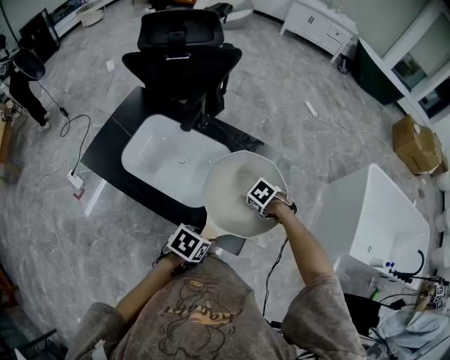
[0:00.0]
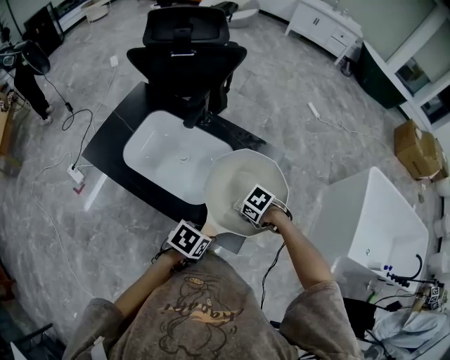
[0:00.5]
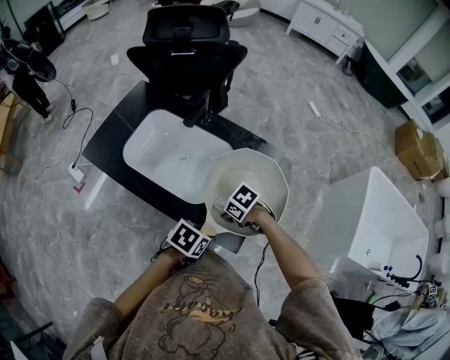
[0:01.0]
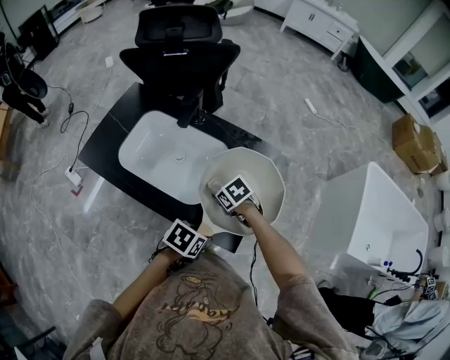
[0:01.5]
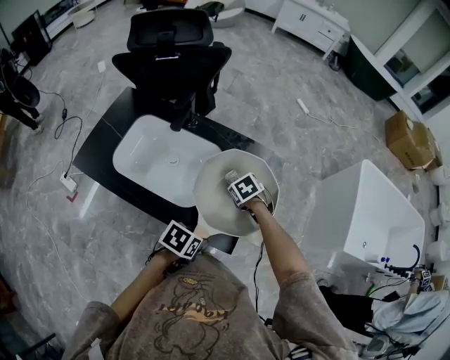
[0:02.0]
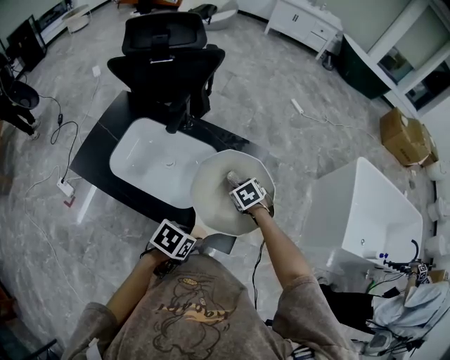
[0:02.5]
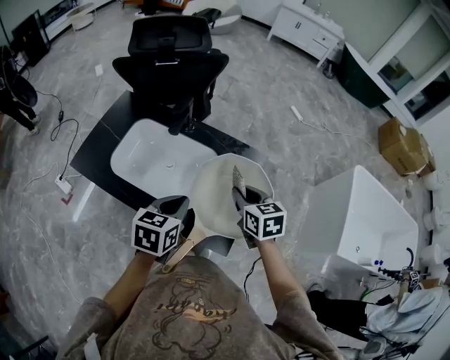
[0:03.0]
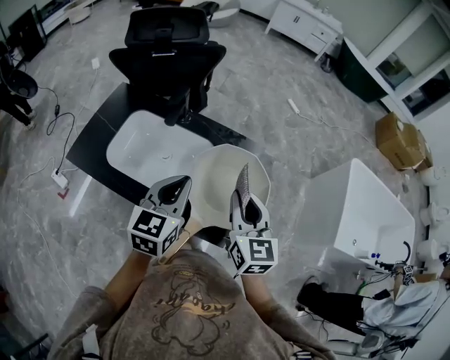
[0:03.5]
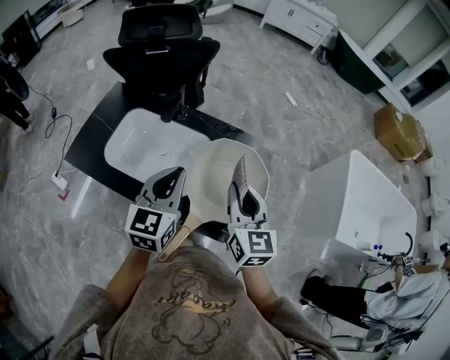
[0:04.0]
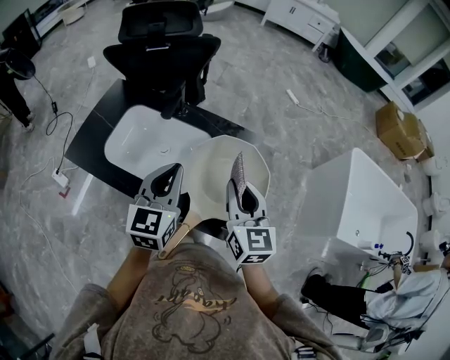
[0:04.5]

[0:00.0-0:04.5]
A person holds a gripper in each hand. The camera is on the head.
0:00.0 to 0:02.0: The right gripper rotates roughly 20 degrees.
0:02.0 to 0:04.5: The left gripper is displaced upward and forward by about 25 cm, angles its fingers upward, by roughly 50 degrees, and closes up, while the right gripper shifts about 25 cm upward, and tips its fingers upward by approximately 60 degrees.

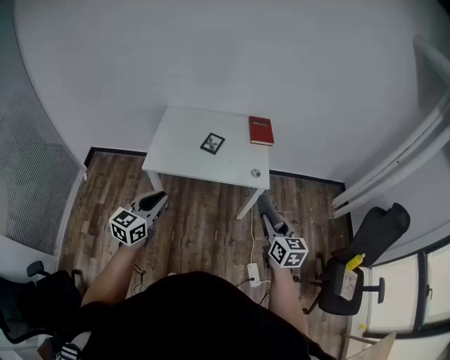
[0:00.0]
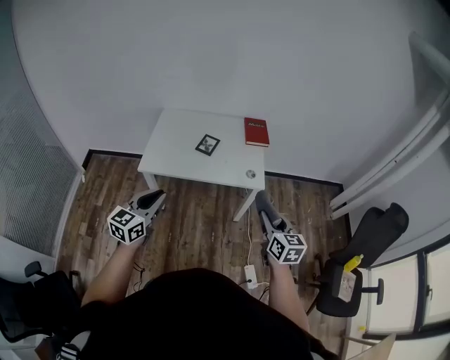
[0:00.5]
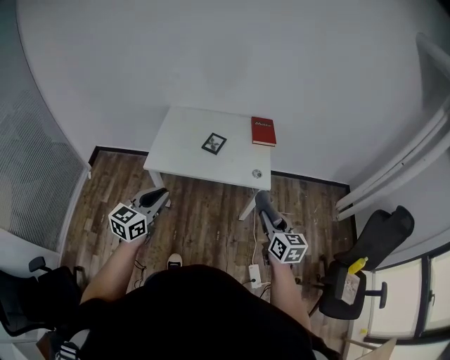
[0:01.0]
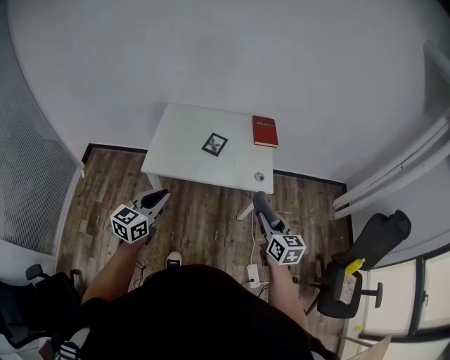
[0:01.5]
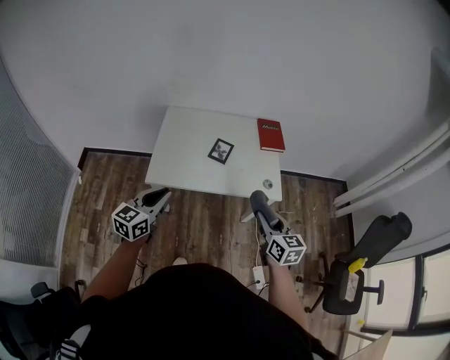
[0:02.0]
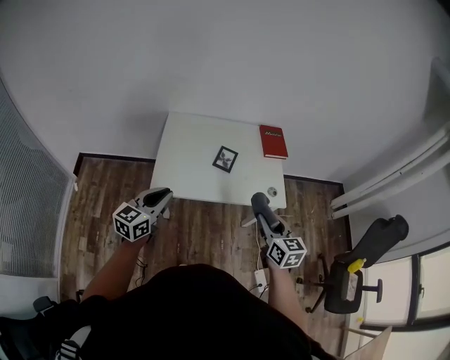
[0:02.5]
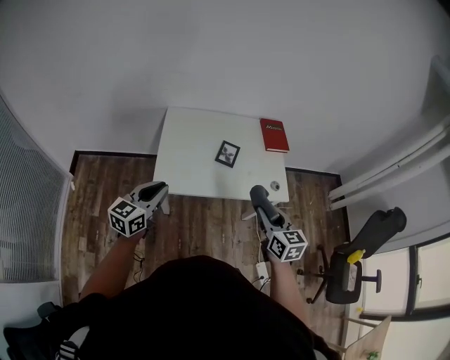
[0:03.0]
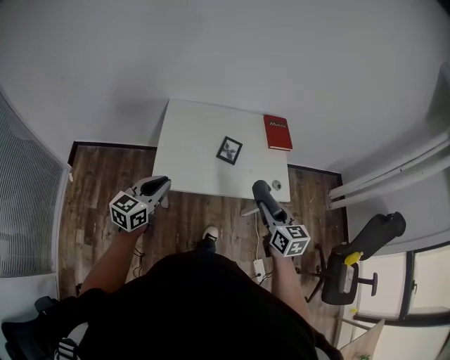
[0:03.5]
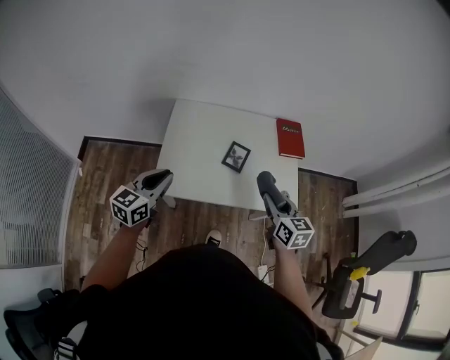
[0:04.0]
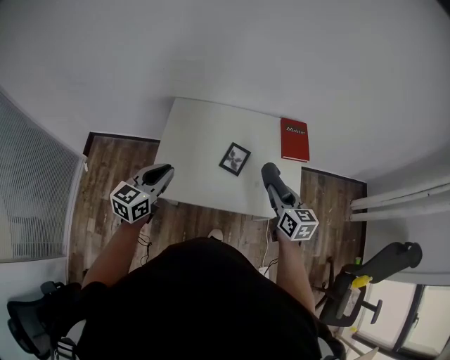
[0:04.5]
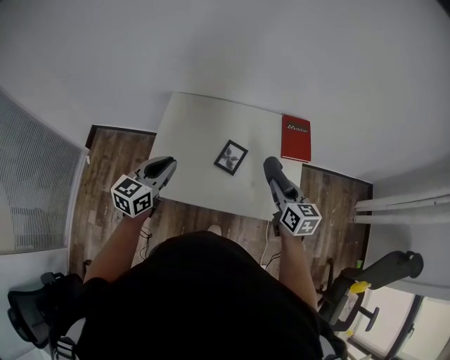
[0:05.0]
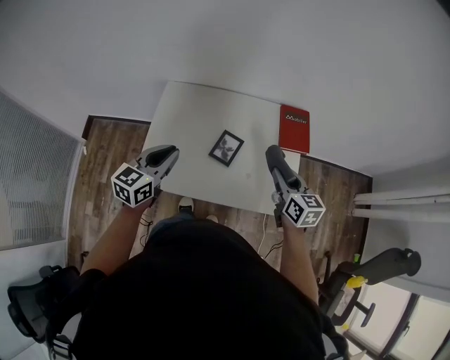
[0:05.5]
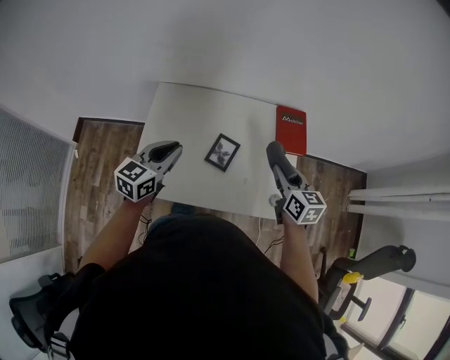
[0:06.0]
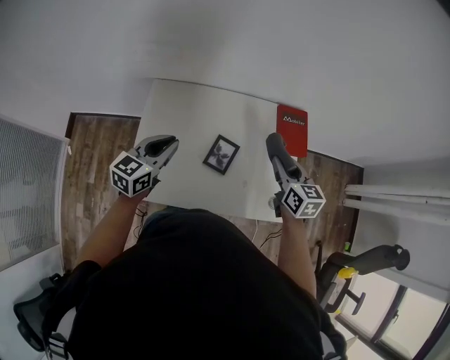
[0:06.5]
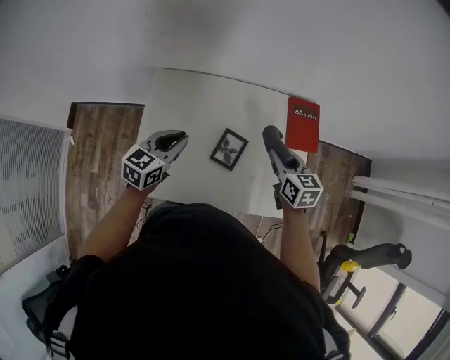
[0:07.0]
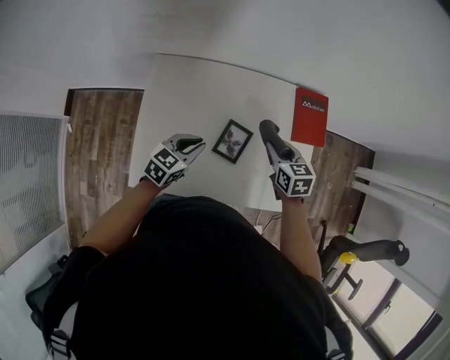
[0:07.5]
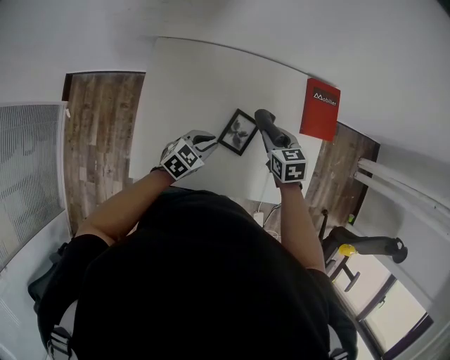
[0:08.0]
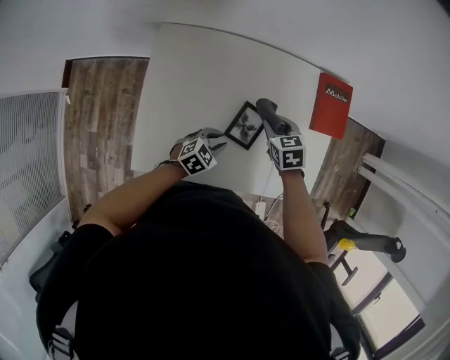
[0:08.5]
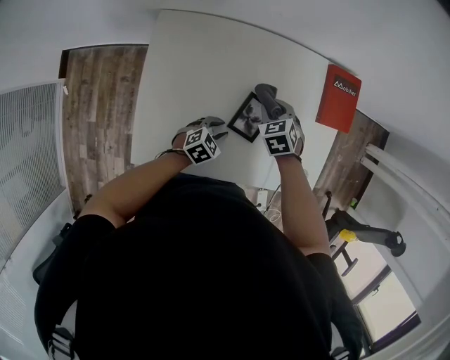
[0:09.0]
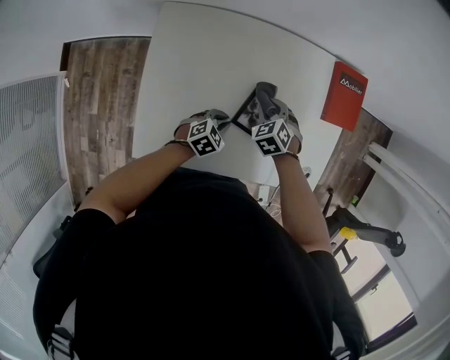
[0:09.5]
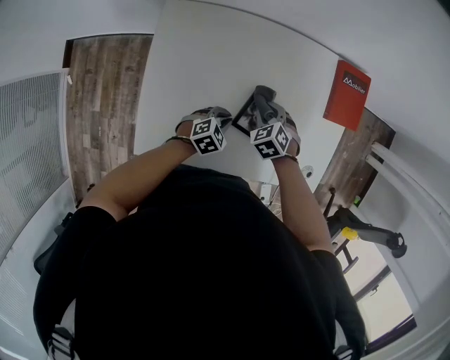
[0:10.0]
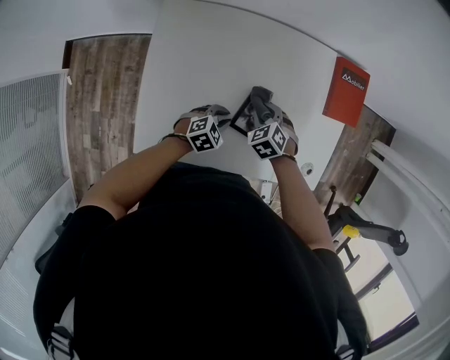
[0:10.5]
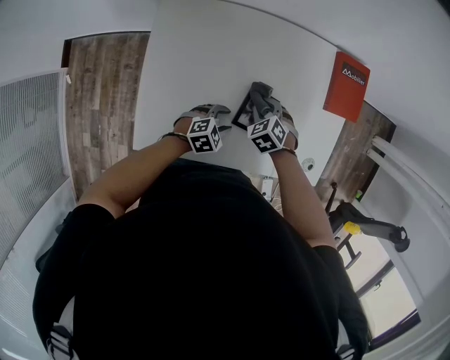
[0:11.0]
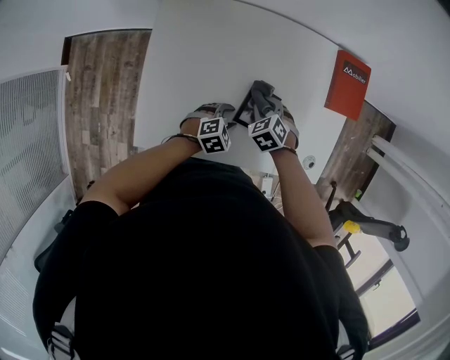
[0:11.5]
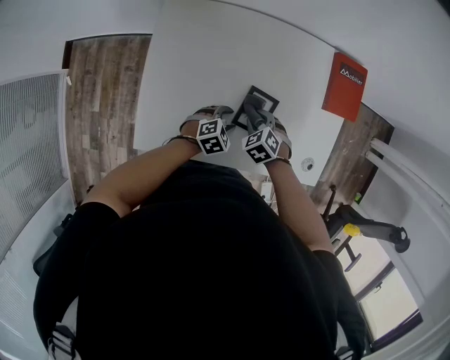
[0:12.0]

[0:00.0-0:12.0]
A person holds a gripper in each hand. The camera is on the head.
0:00.0 to 0:02.0: The left gripper travels forward and to the left by about 15 cm; the right gripper heads to the left and forward, covering approximately 15 cm.
0:02.0 to 0:04.0: Both grippers travel together forward and to the left, approximately 20 cm.
0:04.0 to 0:06.0: Both grippers move forward and to the right, about 20 cm.
0:06.0 to 0:08.0: The left gripper shifts roughly 25 cm downward, and turns by some 30 degrees; the right gripper is displaced downward, to the left and forward by about 25 cm, and changes its angle by roughly 30 degrees.
0:08.0 to 0:10.0: The right gripper goes about 10 cm downward and to the left, and rotates approximately 30 degrees. Meanwhile the left gripper moves downward, some 10 cm.
0:10.0 to 0:12.0: The left gripper opens, while the right gripper is displaced backward by approximately 5 cm.

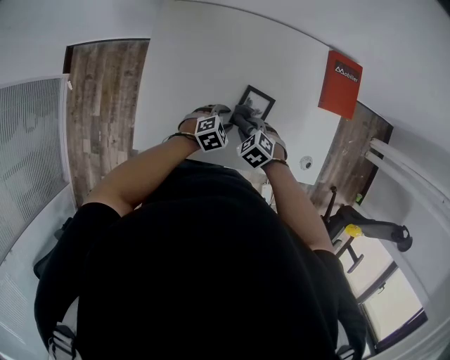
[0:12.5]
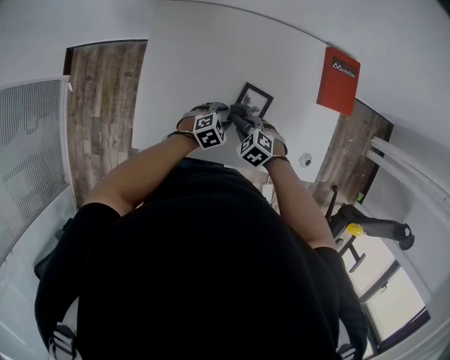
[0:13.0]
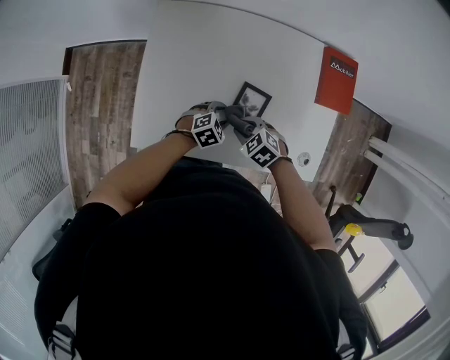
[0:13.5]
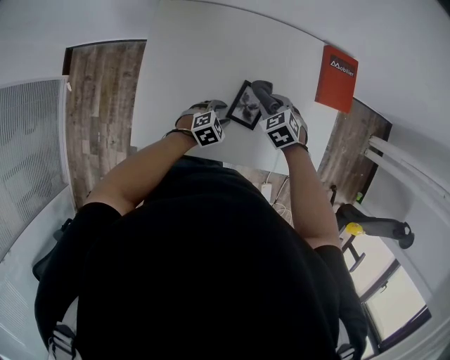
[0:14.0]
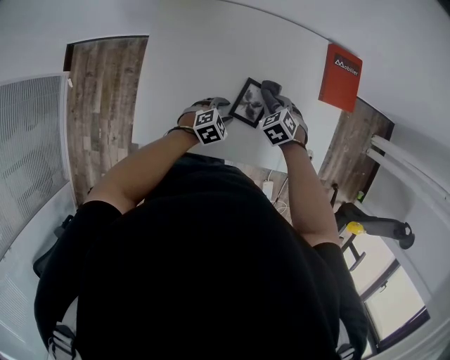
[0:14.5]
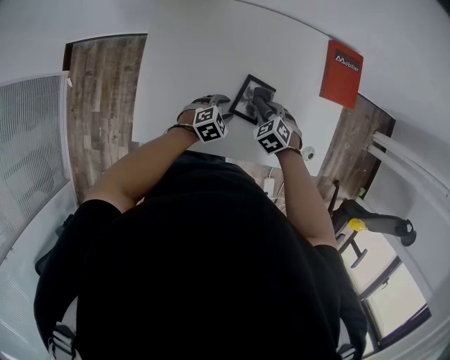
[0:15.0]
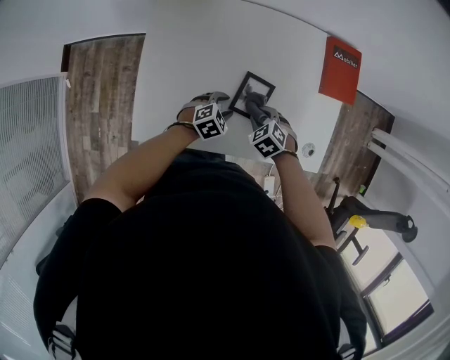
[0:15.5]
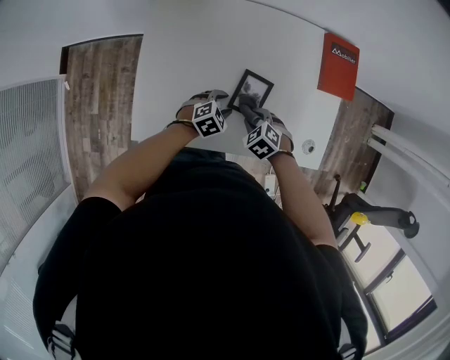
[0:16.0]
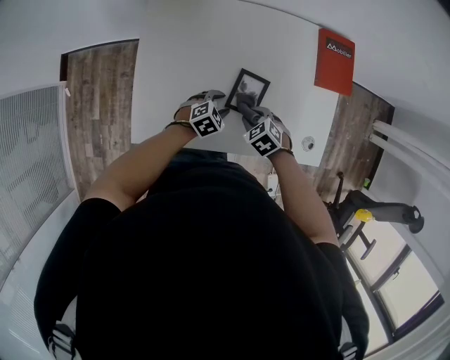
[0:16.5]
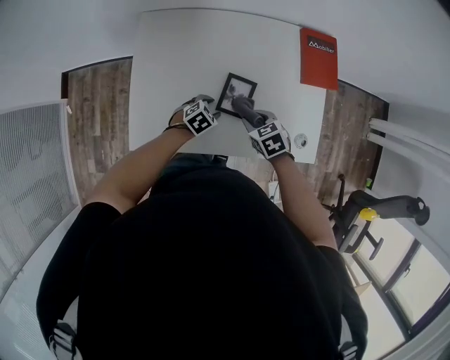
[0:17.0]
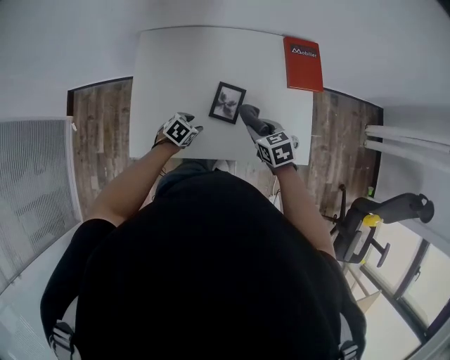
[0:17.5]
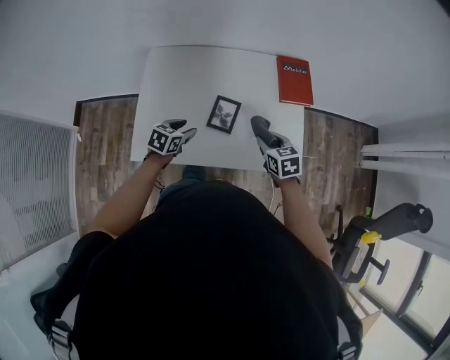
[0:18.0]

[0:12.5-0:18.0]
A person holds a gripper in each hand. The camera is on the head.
0:12.5 to 0:14.5: The right gripper moves roughly 10 cm.
0:14.5 to 0:16.0: The right gripper shifts some 10 cm backward.
0:16.0 to 0:18.0: The right gripper heads upward and to the right, covering approximately 20 cm, and swivels approximately 50 degrees; the left gripper moves upward and to the left, some 15 cm, and swivels some 30 degrees.

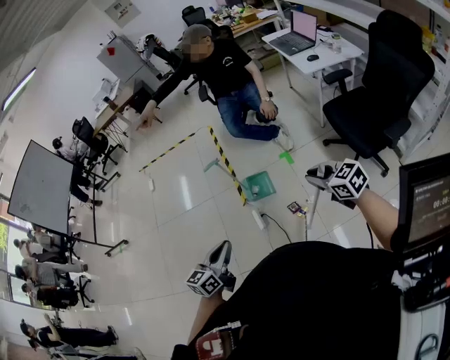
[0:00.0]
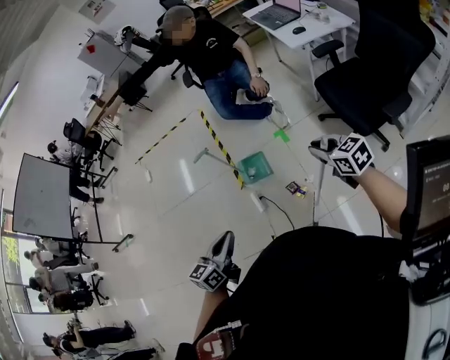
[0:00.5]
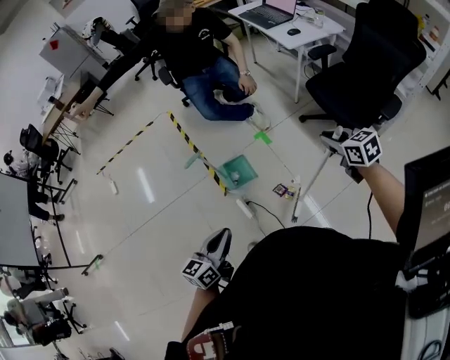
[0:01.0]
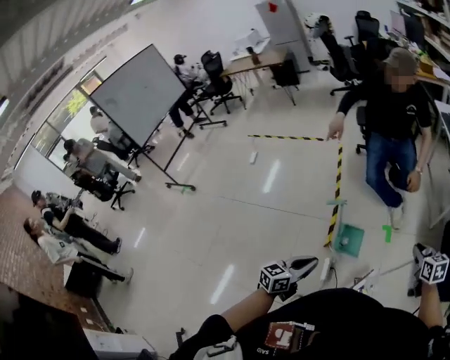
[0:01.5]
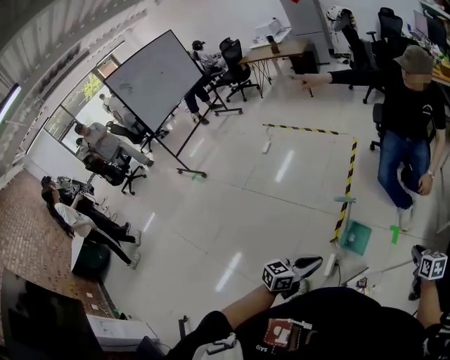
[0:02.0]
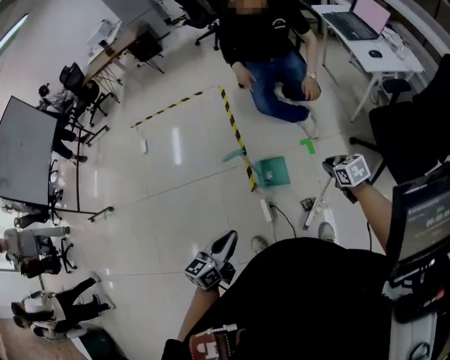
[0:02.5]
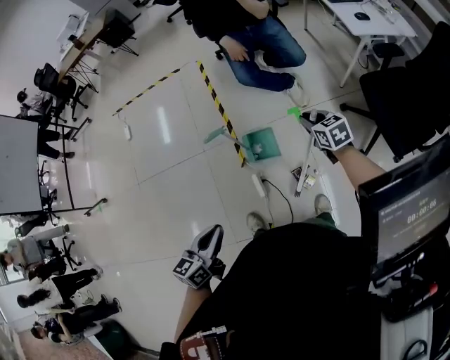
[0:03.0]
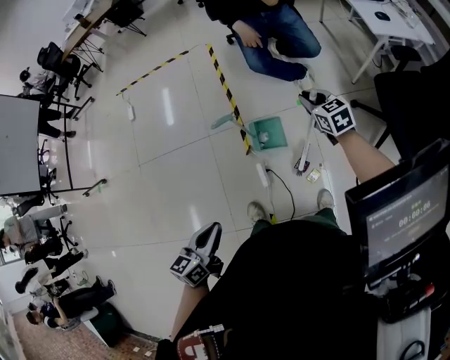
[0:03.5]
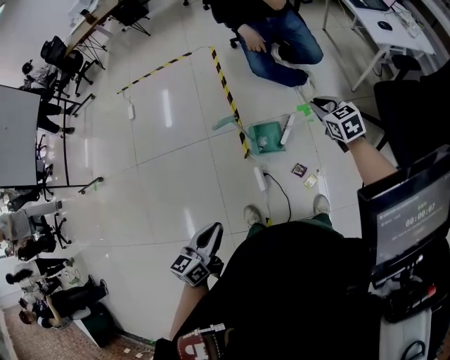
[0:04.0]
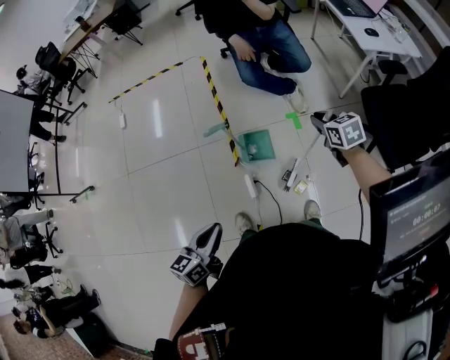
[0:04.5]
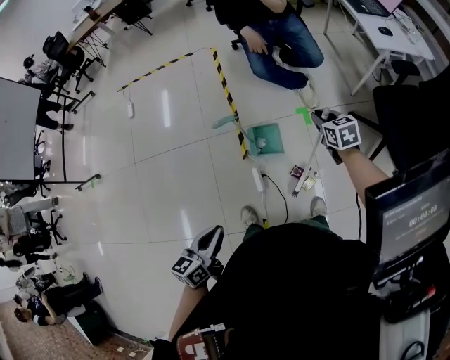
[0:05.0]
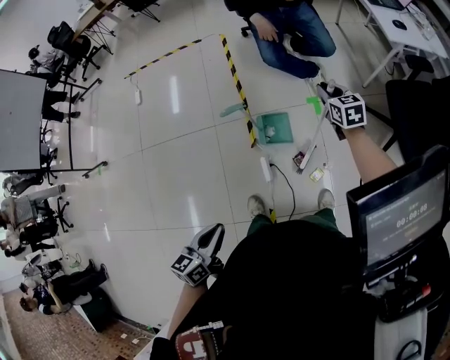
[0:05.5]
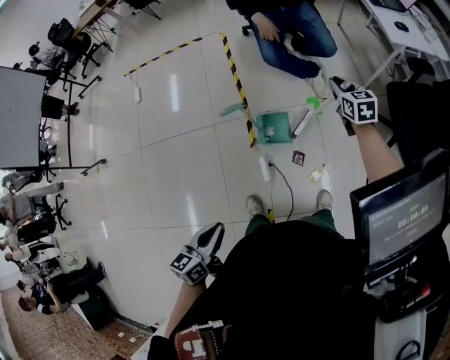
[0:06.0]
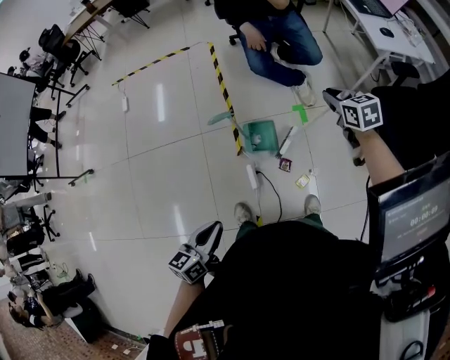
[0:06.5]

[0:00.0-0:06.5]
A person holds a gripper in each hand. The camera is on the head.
0:00.0 to 0:02.0: The right gripper shifts roughly 30 cm forward and downward, and swivels roughly 20 degrees. Meanwhile the left gripper shifts roughly 20 cm forward and to the left.
0:02.0 to 0:04.5: The right gripper moves forward, roughly 10 cm. Meanwhile the left gripper travels downward by about 5 cm.
0:04.5 to 0:06.5: The right gripper goes some 5 cm forward.
